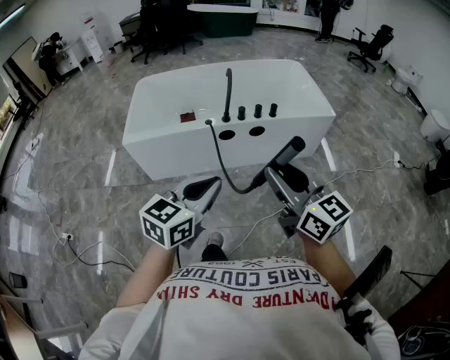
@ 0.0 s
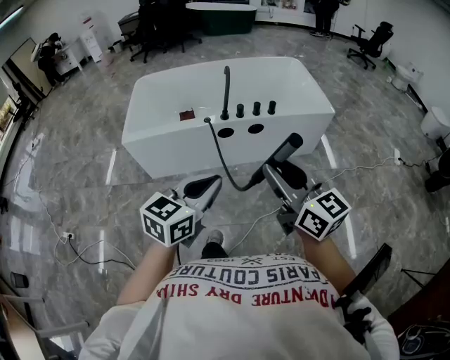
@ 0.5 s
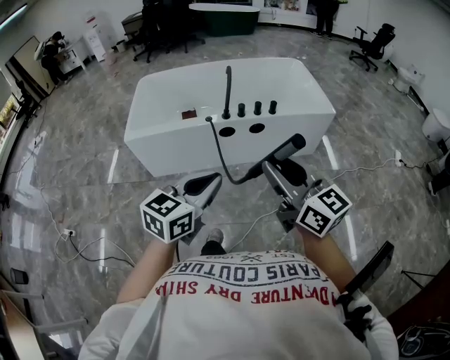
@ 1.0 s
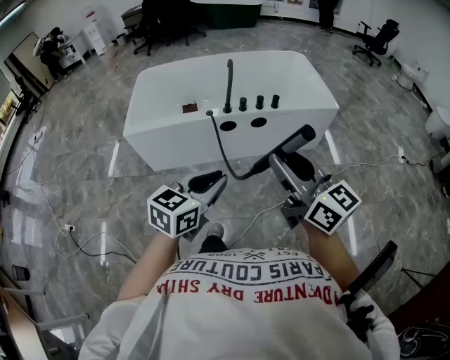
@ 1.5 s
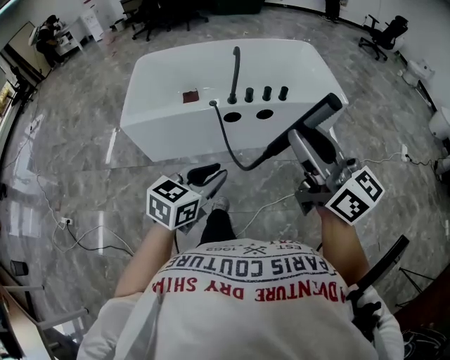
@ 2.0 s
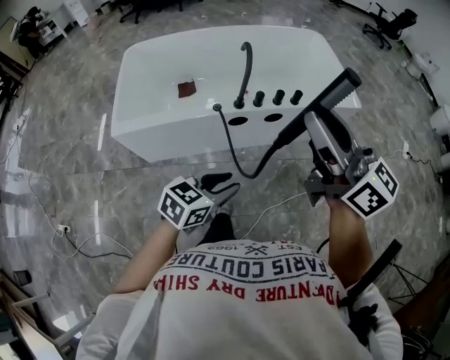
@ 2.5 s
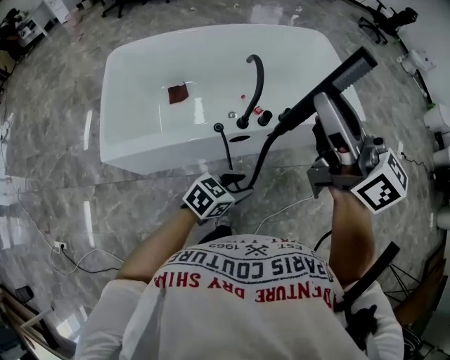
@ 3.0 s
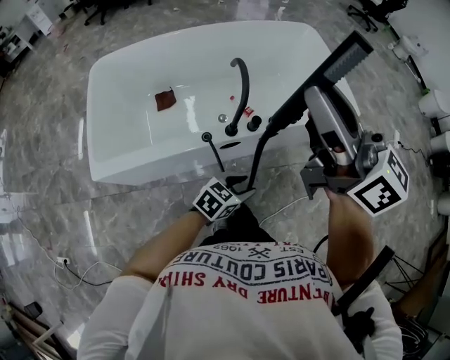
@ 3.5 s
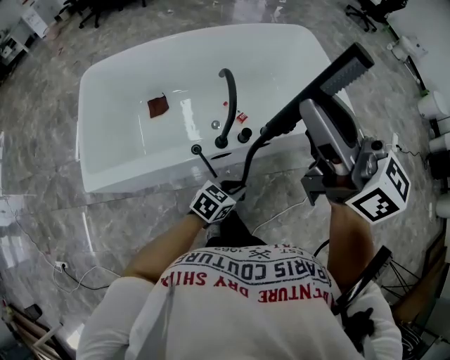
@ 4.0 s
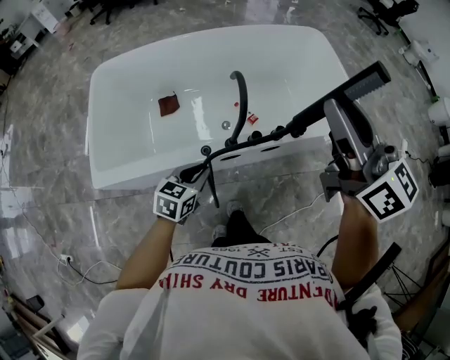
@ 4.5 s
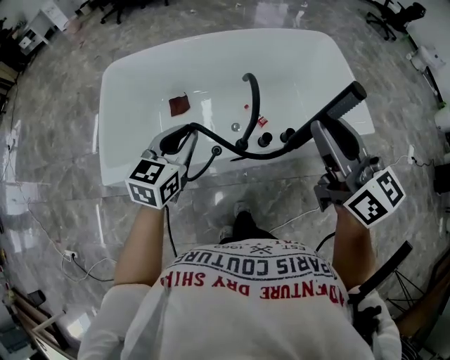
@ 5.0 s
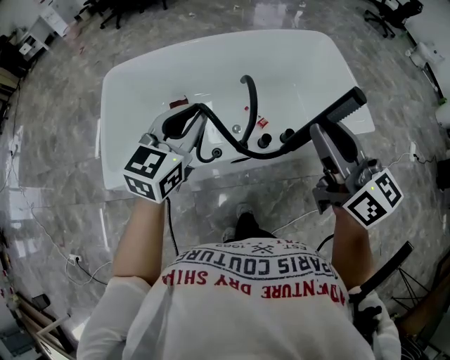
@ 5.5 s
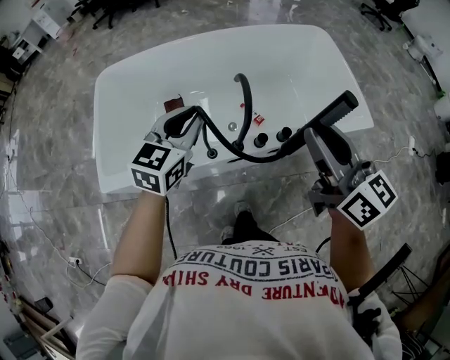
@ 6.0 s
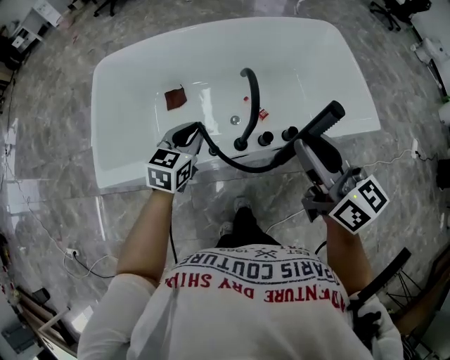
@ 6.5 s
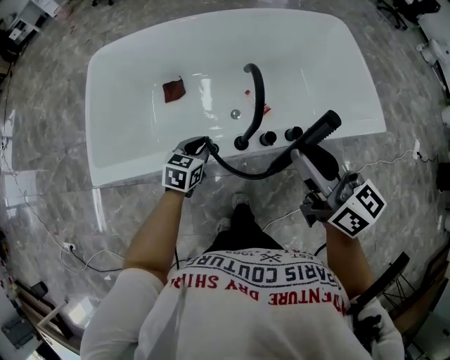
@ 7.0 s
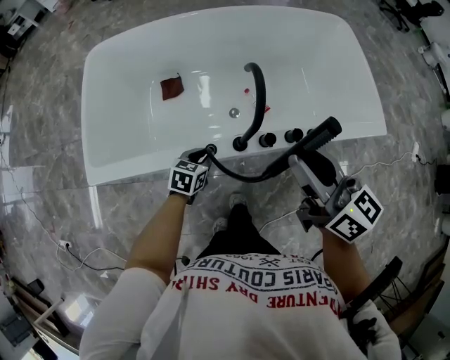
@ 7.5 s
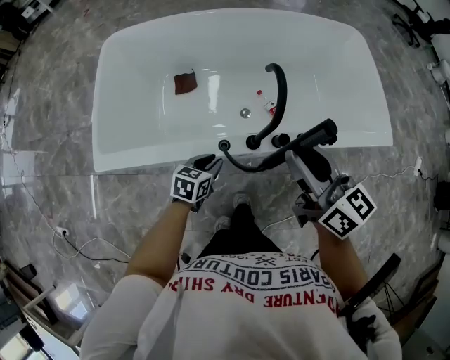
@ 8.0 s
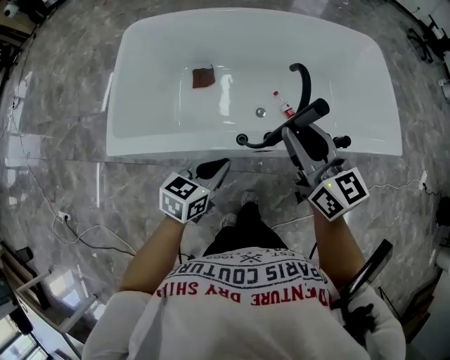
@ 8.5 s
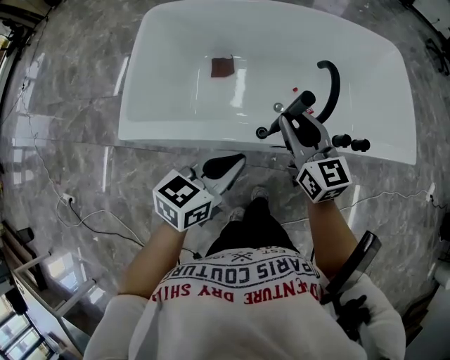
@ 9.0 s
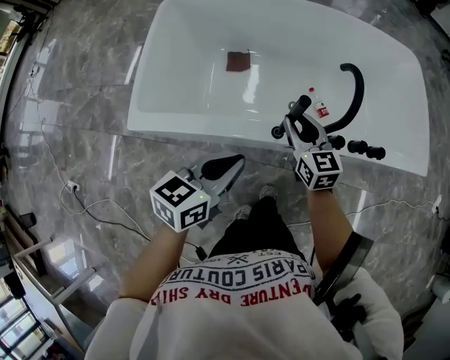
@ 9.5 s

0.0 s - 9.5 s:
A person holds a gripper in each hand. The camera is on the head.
0.0 s - 2.0 s: The left gripper travels downward by roughly 5 cm, and opens. The right gripper heads forward and upward, covering some 10 cm.
2.0 s - 4.0 s: The right gripper goes roughly 40 cm forward and to the left. The left gripper travels forward and downward by approximately 40 cm, changes its angle by approximately 30 degrees, and opens and closes again.
4.0 s - 5.5 s: The left gripper goes about 35 cm upward, to the left and forward, and turns by about 40 degrees, while the right gripper goes roughly 5 cm downward.
5.5 s - 7.5 s: The left gripper travels downward by approximately 40 cm, and tips its fingers downward by some 30 degrees. Meanwhile the right gripper shifts about 15 cm downward.
7.5 s - 9.5 s: The right gripper travels downward and to the left by roughly 25 cm, and changes its angle by roughly 20 degrees, while the left gripper travels upward and backward by some 20 cm, and swivels approximately 30 degrees.

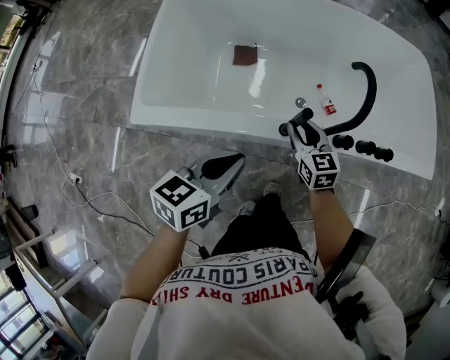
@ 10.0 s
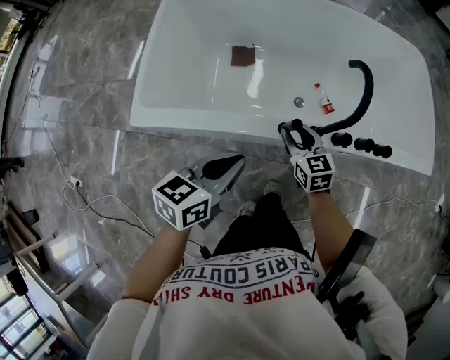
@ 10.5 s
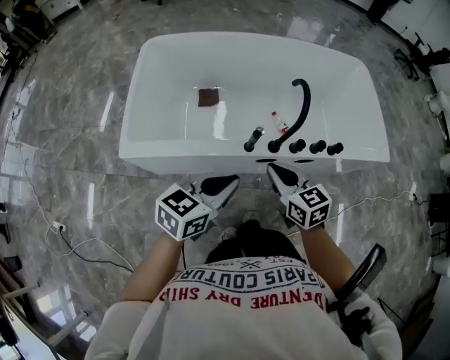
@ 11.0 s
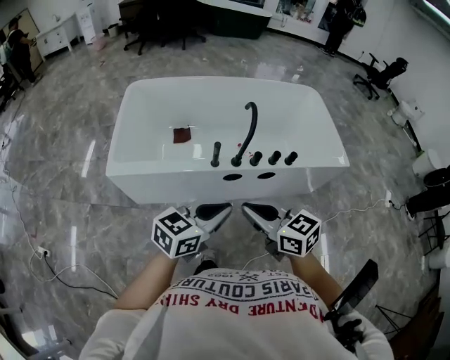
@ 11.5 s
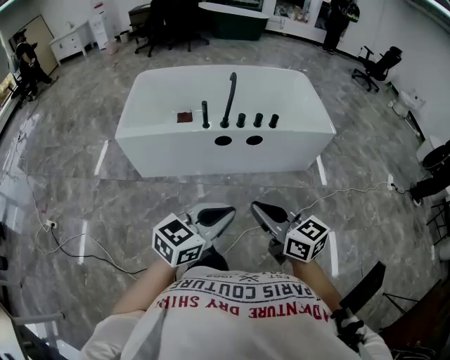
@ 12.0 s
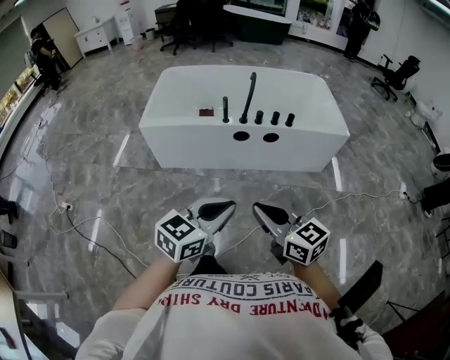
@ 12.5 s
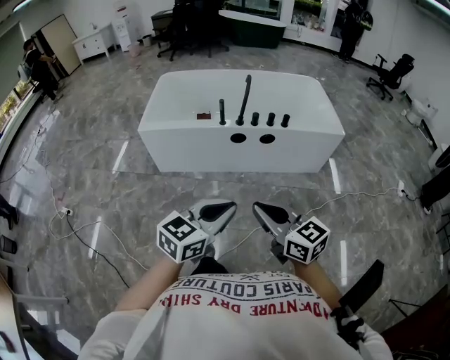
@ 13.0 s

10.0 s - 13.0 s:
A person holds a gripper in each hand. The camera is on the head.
10.0 s - 11.5 s: The right gripper is displaced backward and upward by some 40 cm, and closes up, while the left gripper goes about 25 cm backward, to the right and upward, and changes its angle by some 30 degrees.
11.5 s - 13.0 s: Both grippers move backward, approximately 35 cm.

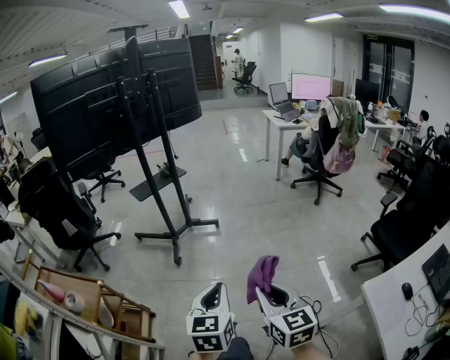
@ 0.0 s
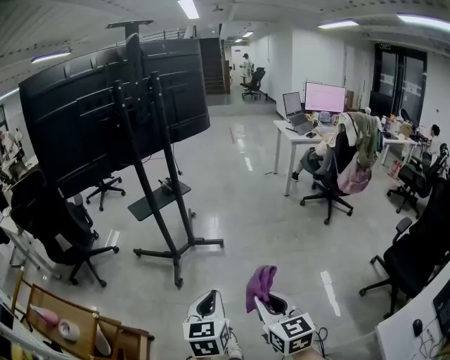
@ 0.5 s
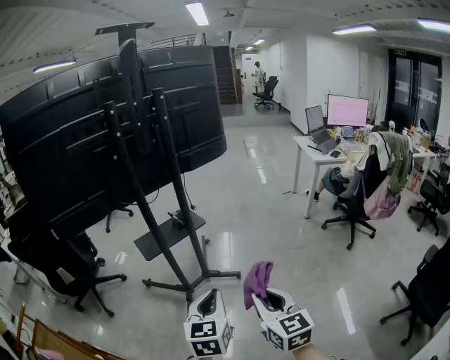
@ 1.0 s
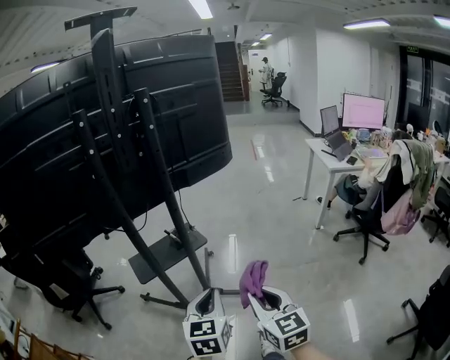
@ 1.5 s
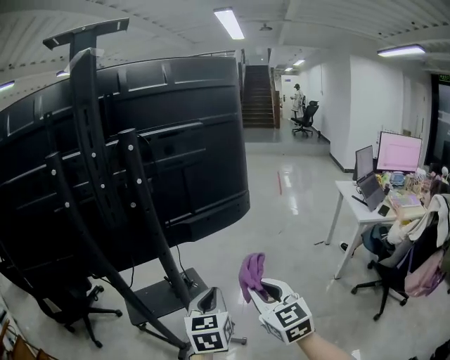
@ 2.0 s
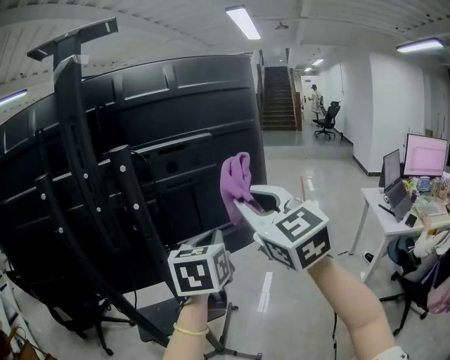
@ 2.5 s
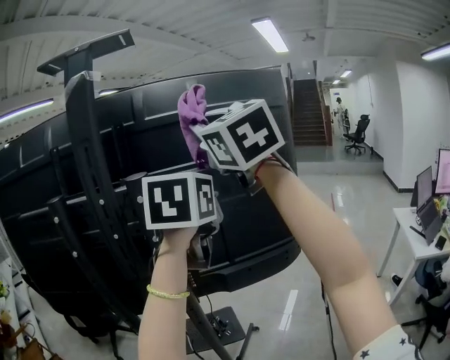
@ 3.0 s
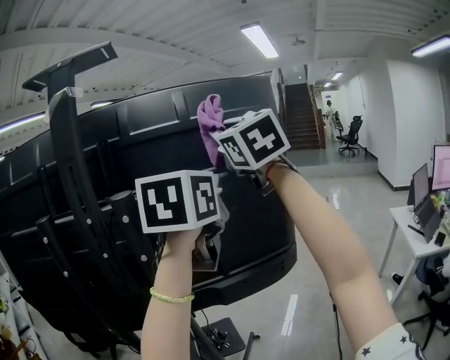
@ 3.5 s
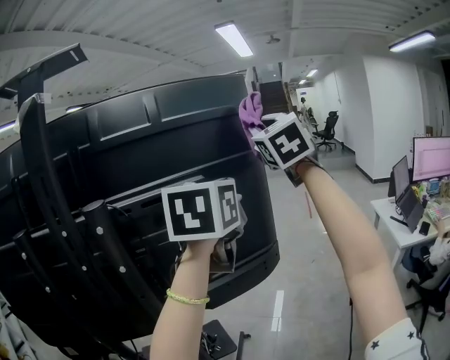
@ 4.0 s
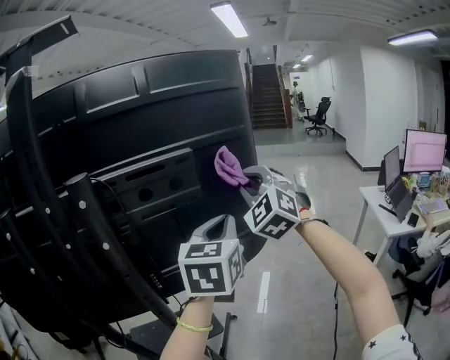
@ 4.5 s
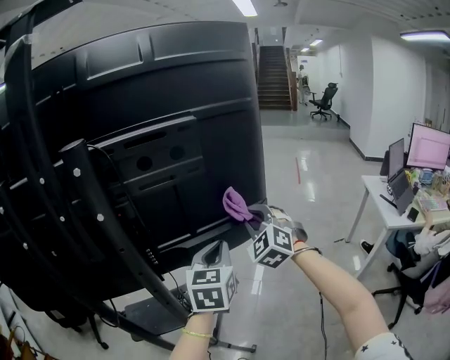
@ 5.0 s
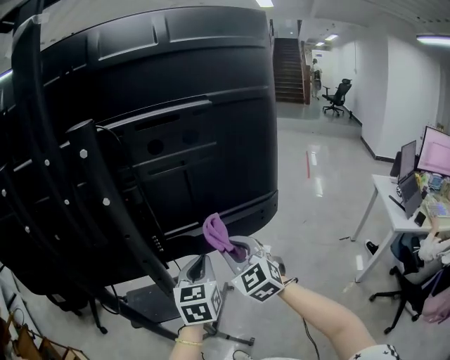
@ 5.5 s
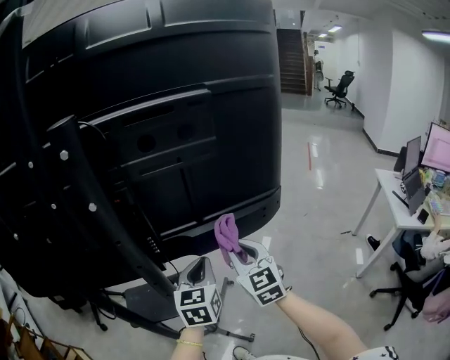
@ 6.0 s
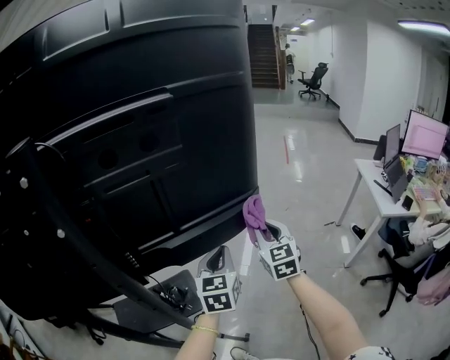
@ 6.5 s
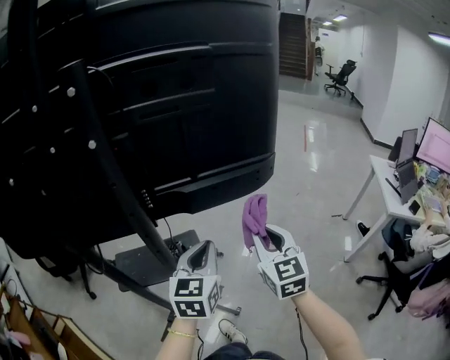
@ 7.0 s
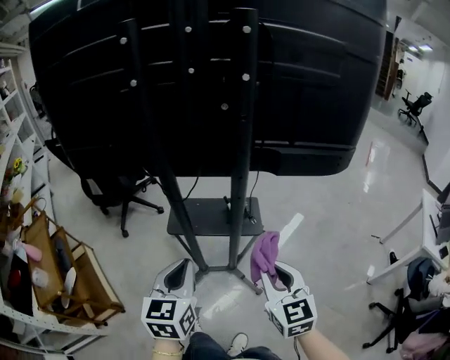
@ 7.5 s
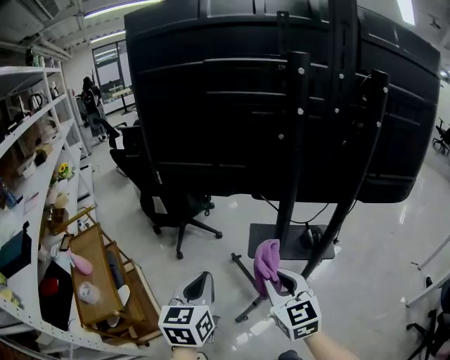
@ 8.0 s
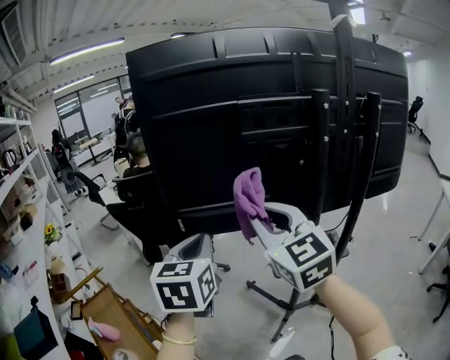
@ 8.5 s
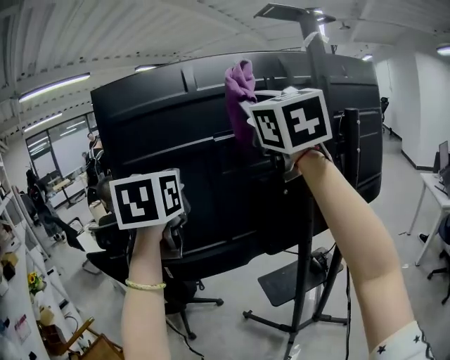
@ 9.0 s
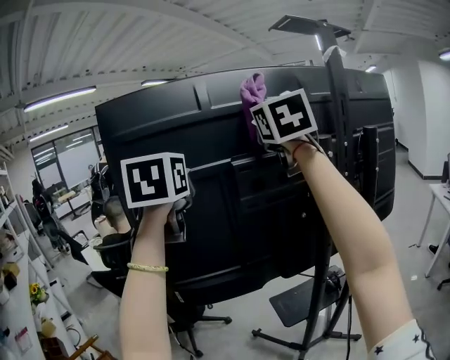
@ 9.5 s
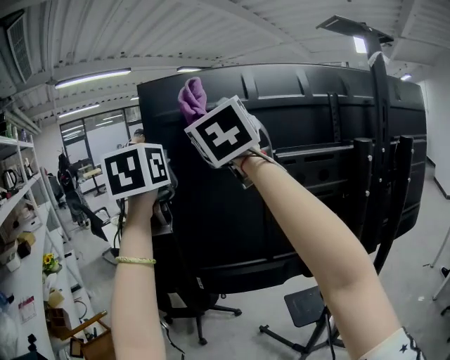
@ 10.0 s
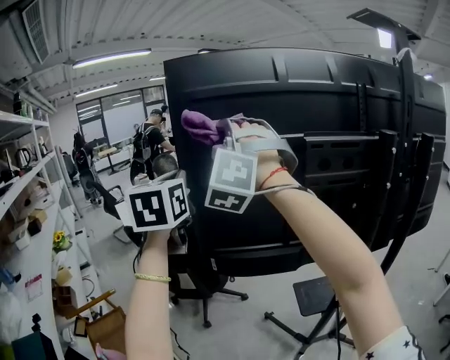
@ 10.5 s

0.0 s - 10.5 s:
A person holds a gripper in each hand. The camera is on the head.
0.0 s - 2.0 s: The pair of grippers is taken forward, roughly 1 m. The right gripper rotates some 30 degrees. Meanwhile the left gripper rotates approximately 20 degrees.
2.0 s - 4.0 s: Both grippers move upward and forward, some 50 cm. The right gripper swivels approximately 30 degrees.
4.0 s - 6.5 s: The grippers both shift downward by about 40 cm. The right gripper rotates some 20 degrees.
6.5 s - 8.5 s: The pair of grippers is taken roughly 80 cm. The right gripper turns by approximately 40 degrees, while the left gripper turns by some 30 degrees.
8.5 s - 10.5 s: The right gripper is displaced upward, forward and to the left by some 35 cm, and twists about 70 degrees counterclockwise, seen from behind. Meanwhile the left gripper heads forward, upward and to the left, covering about 30 cm.

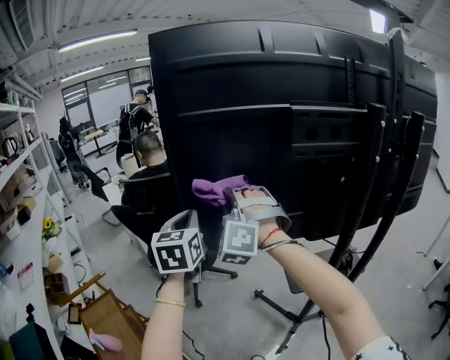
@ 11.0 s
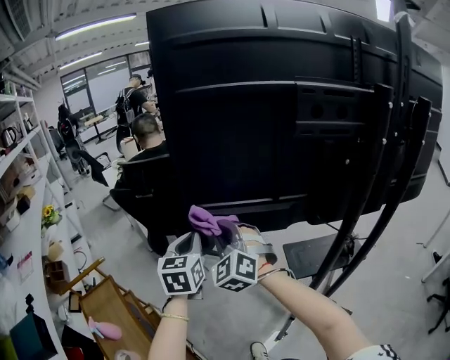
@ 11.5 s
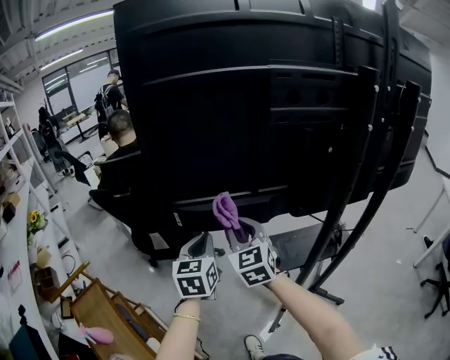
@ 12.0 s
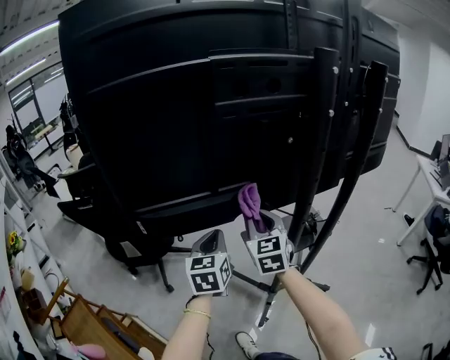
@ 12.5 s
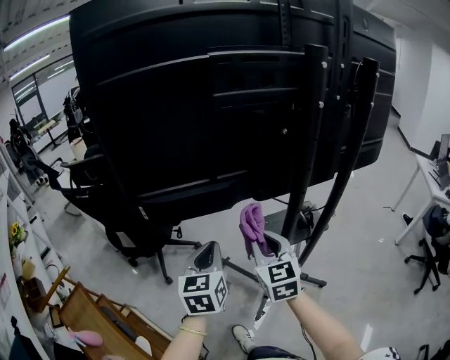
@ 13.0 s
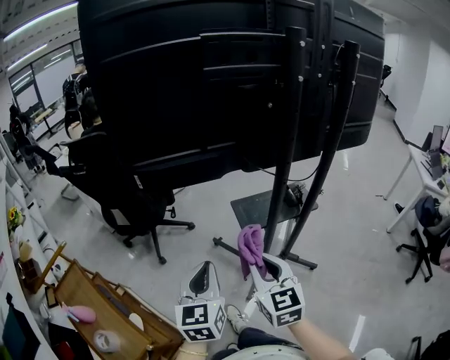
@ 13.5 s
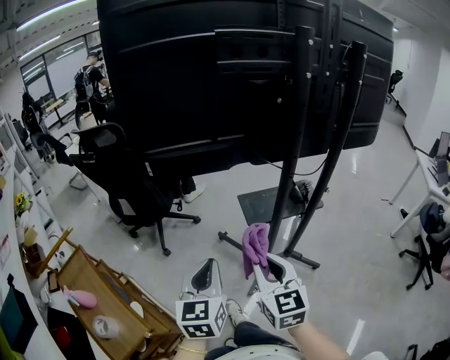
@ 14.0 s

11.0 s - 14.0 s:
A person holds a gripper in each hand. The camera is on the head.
11.0 s - 12.5 s: The grippers both shift to the right and downward by about 30 cm. The right gripper rolls clockwise, seen from behind, by roughly 70 degrees.
12.5 s - 14.0 s: Both grippers travel together backward, approximately 30 cm.
